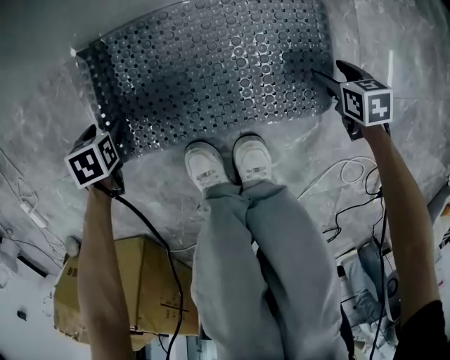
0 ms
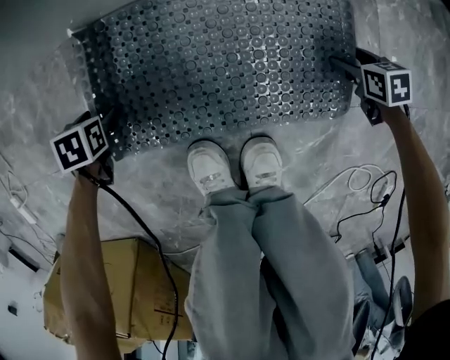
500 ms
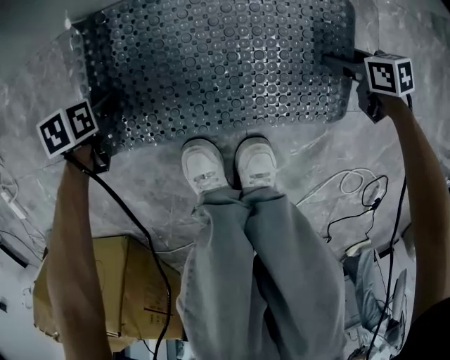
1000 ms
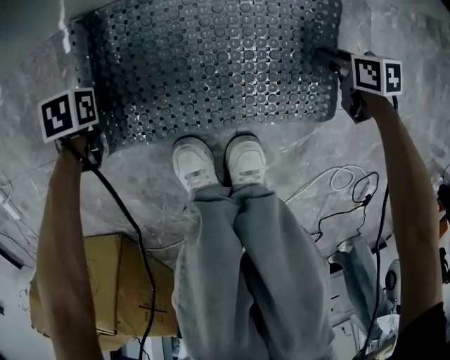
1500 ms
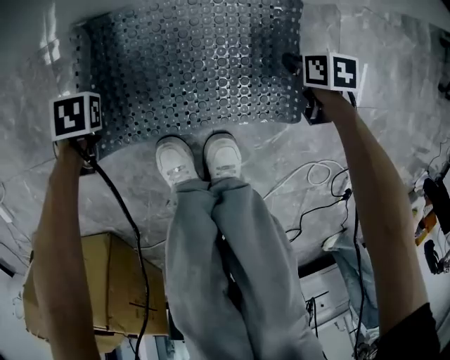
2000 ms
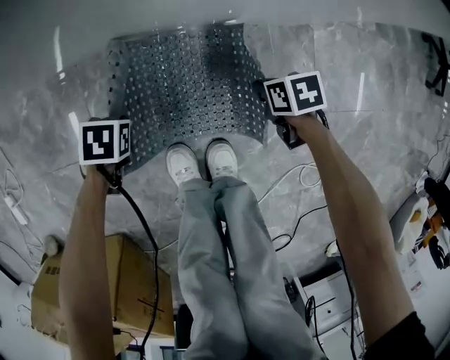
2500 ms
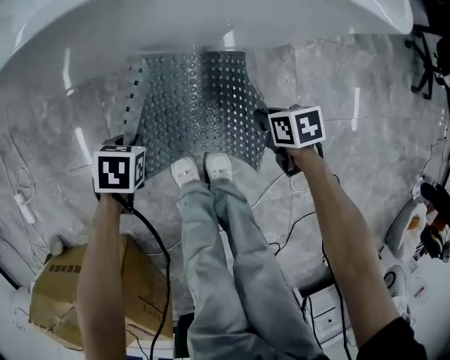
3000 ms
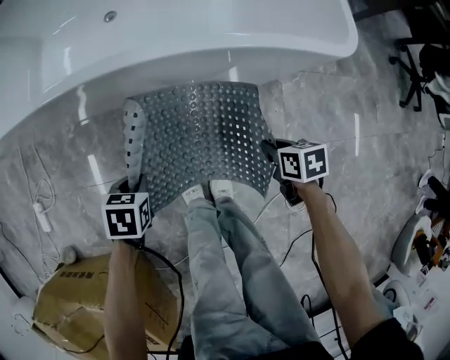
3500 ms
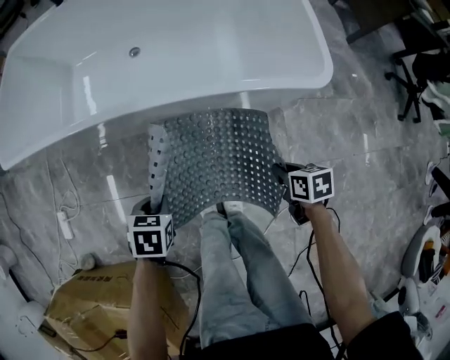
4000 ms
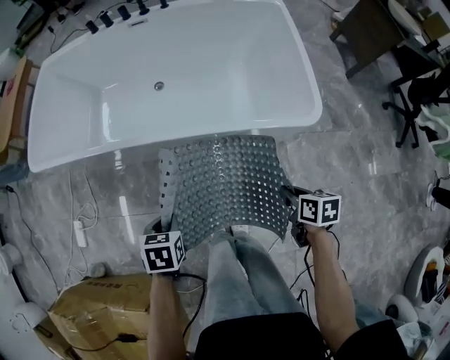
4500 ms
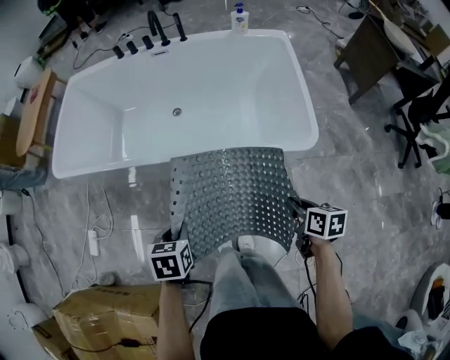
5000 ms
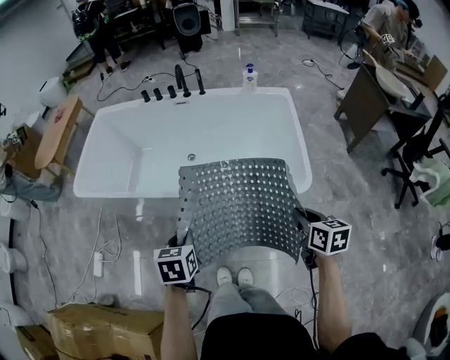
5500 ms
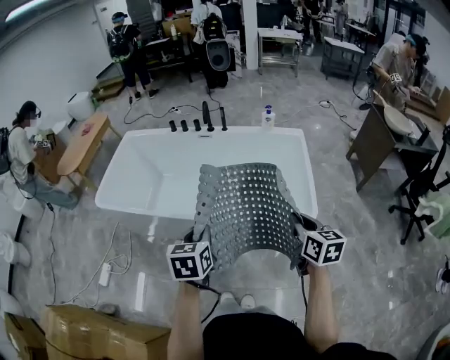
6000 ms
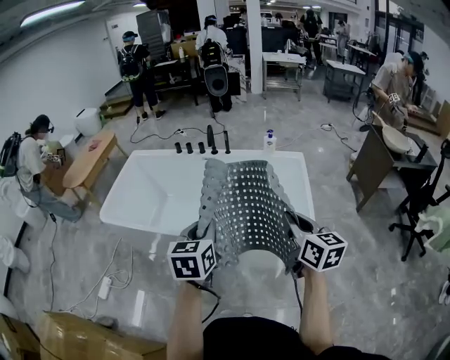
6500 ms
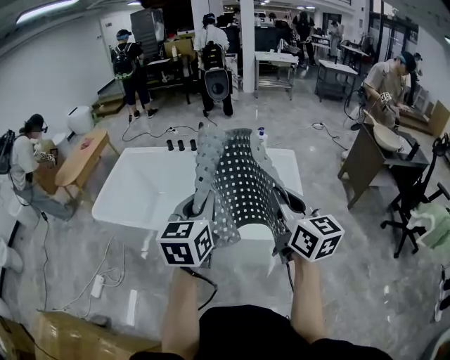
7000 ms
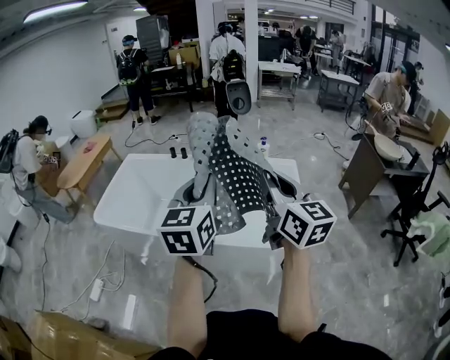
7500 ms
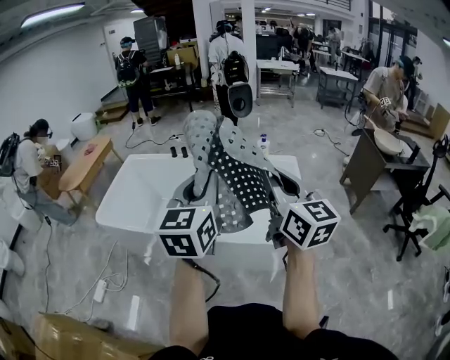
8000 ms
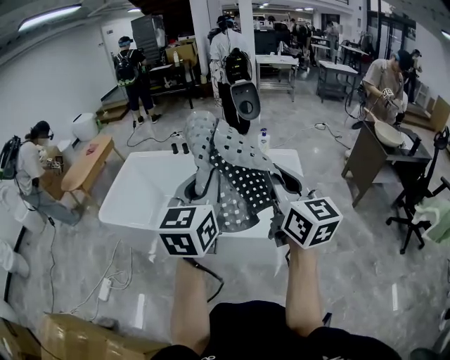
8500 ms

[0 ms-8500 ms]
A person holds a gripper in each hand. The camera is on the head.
0 ms to 2000 ms: The right gripper ends up roughly 5 cm from where it was, and closes up, while the left gripper closes its fingers.
2000 ms to 4000 ms: Both grippers move upward, roughly 50 cm. The left gripper rotates approximately 20 degrees.
4000 ms to 6500 ms: The two grippers go some 50 cm upward. The right gripper angles its fingers upward, by about 50 degrees. Meanwhile the left gripper angles its fingers upward, by approximately 50 degrees.
6500 ms to 8500 ms: The two grippers go approximately 15 cm upward. The right gripper rotates about 20 degrees. The left gripper turns by about 20 degrees.

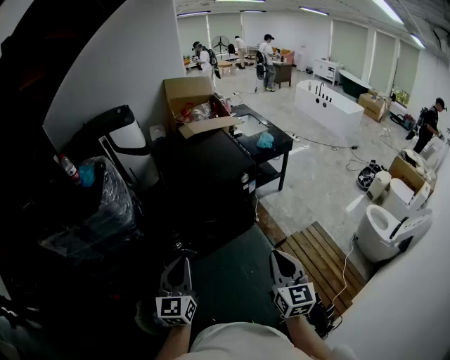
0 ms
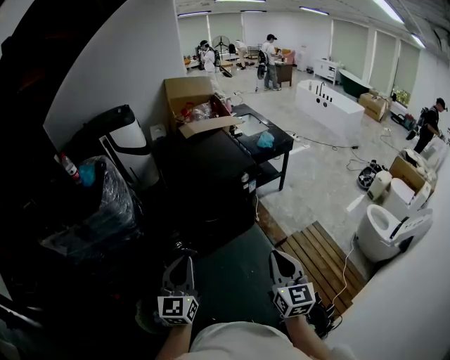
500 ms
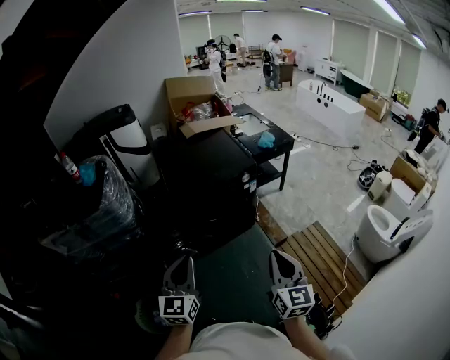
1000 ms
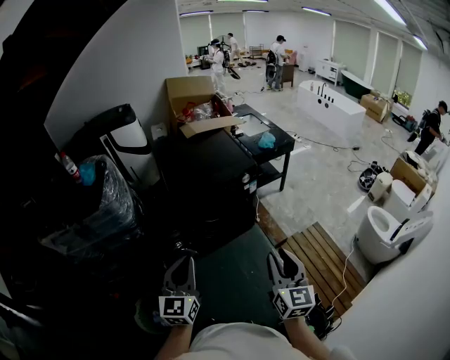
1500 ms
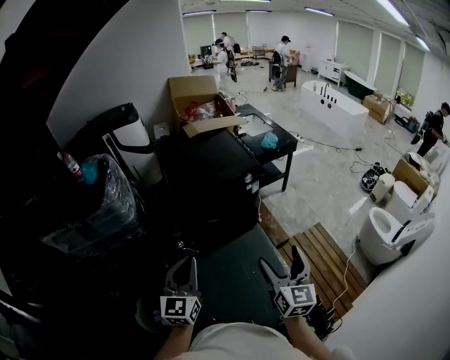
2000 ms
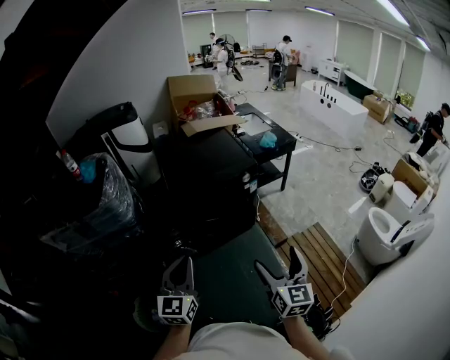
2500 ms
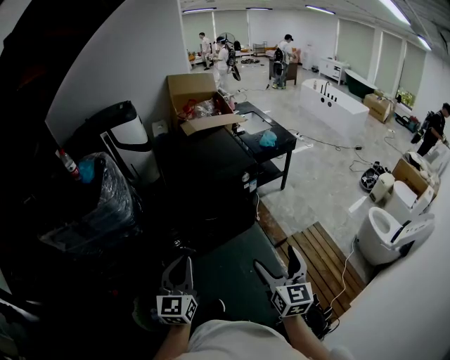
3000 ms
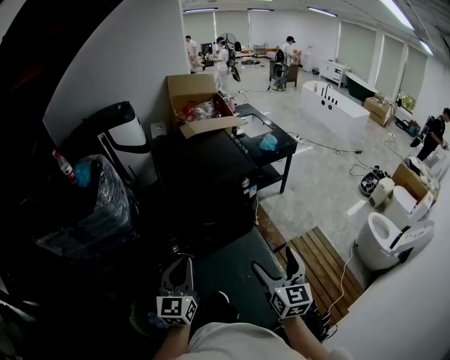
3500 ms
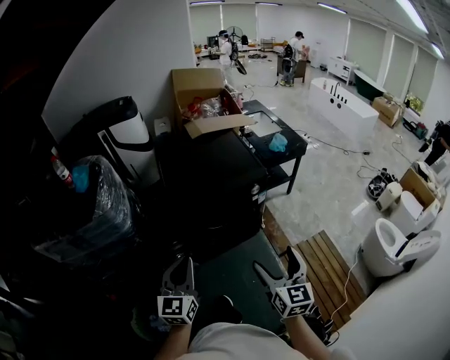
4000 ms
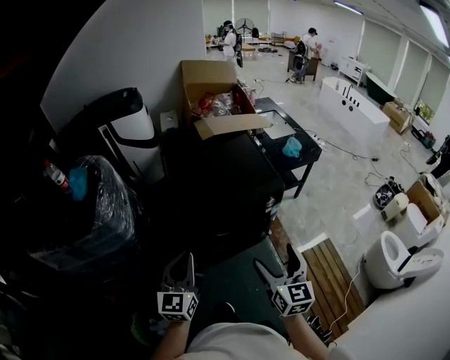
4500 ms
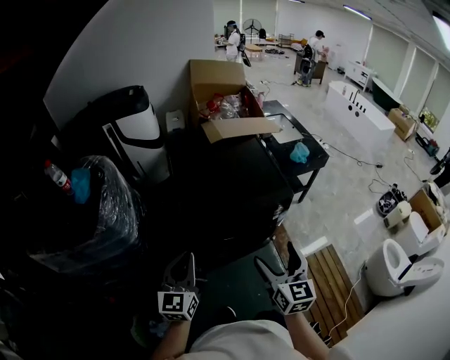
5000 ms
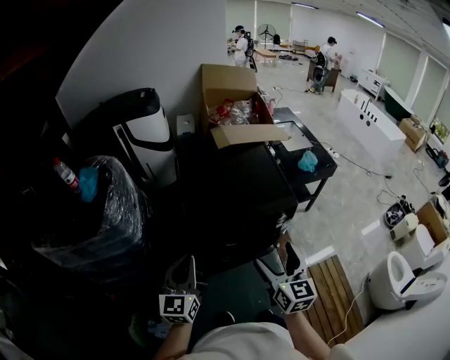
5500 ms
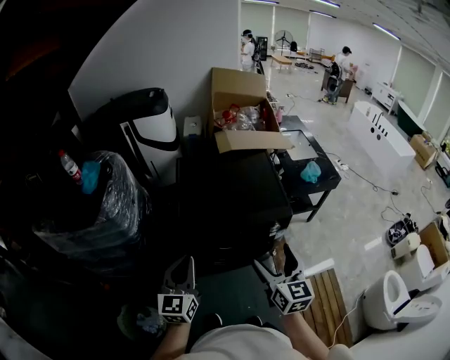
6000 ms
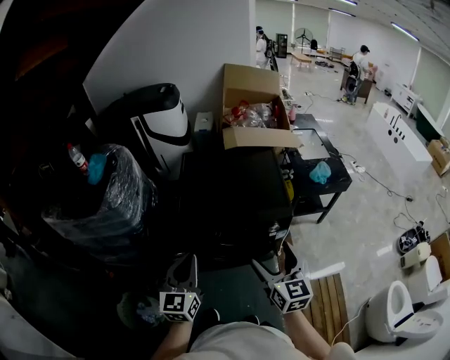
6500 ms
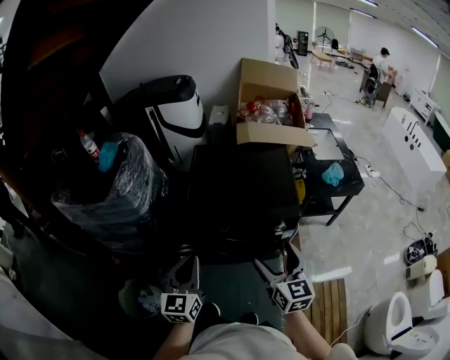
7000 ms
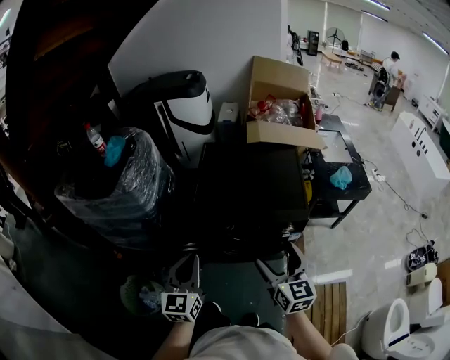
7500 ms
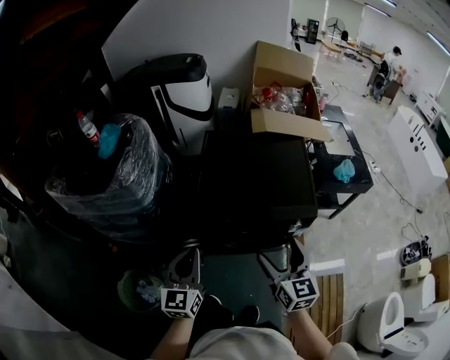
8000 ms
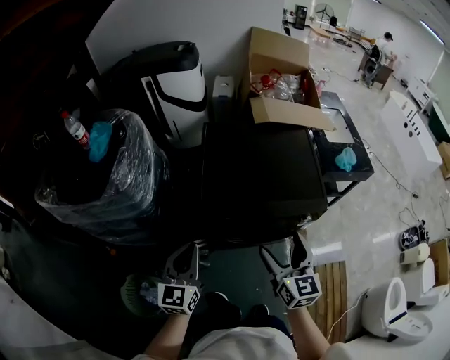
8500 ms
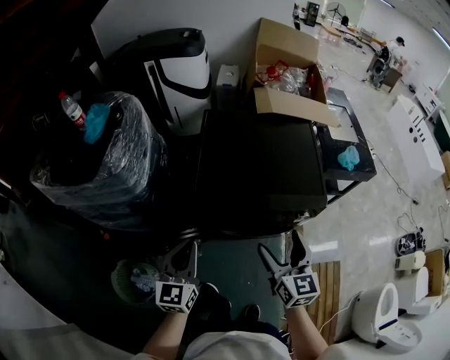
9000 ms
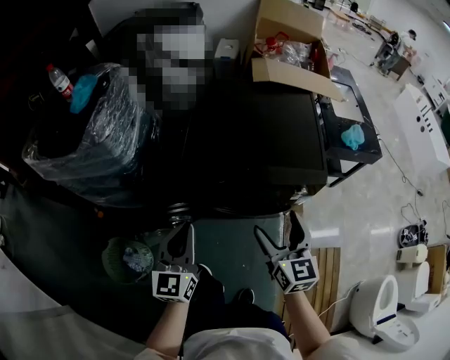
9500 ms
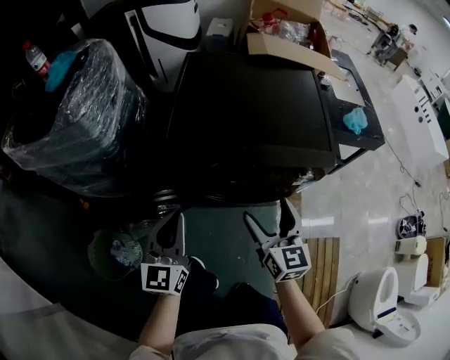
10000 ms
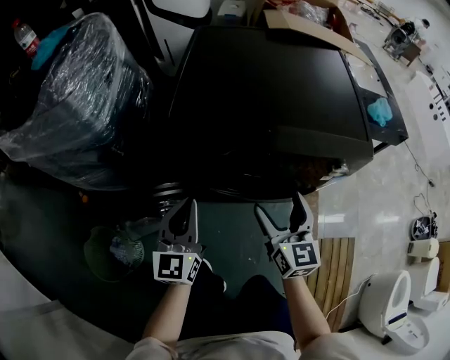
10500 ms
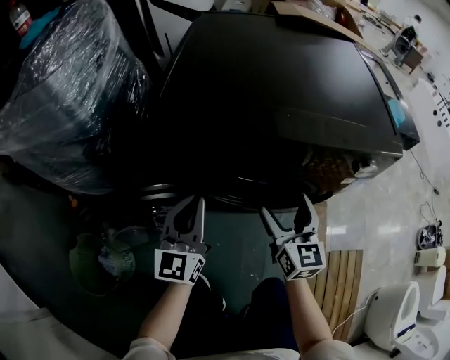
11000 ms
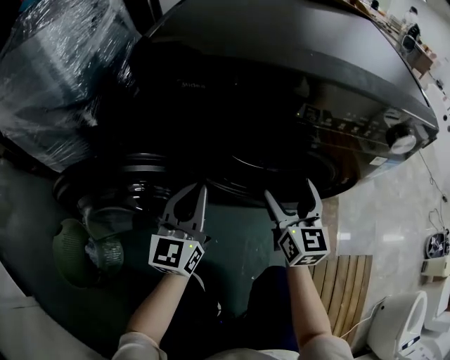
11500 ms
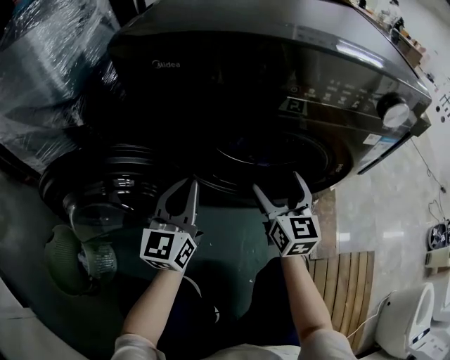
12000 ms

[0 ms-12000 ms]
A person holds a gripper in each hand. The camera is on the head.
0 ms to 2000 ms: The right gripper opens up.
2000 ms to 4000 ms: Both grippers move forward, approximately 15 cm.
4000 ms to 6000 ms: Both grippers move forward, roughly 20 cm.
6000 ms to 8000 ms: The right gripper goes approximately 5 cm forward.
8000 ms to 10000 ms: The grippers both shift downward by approximately 20 cm.
10000 ms to 12000 ms: Both grippers move downward, approximately 35 cm.

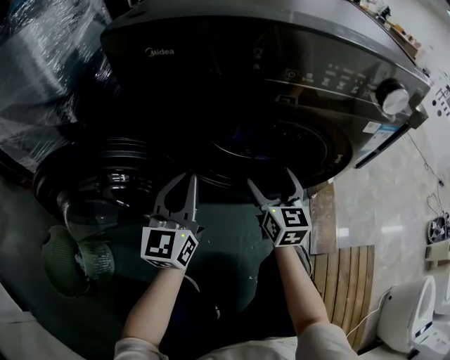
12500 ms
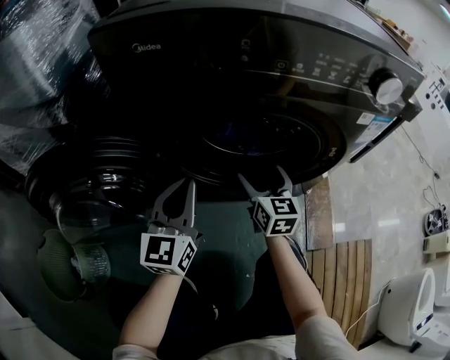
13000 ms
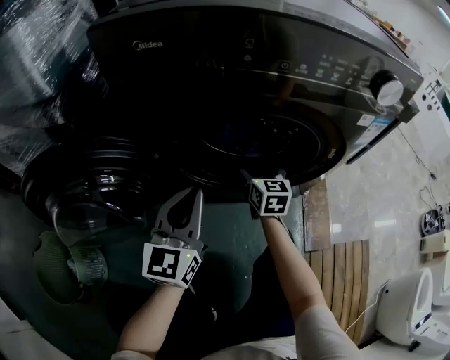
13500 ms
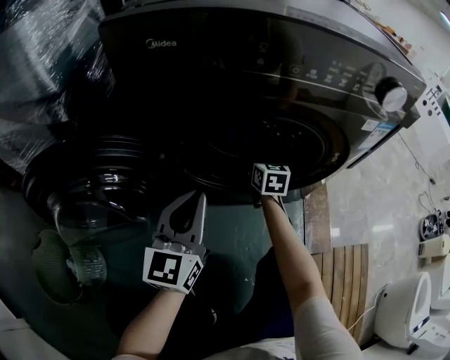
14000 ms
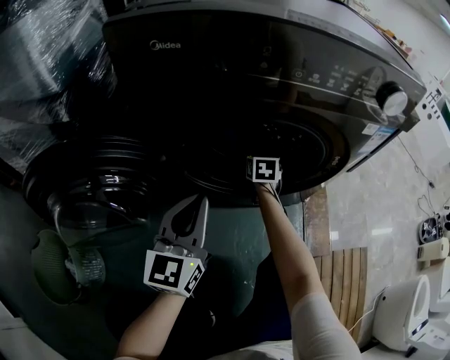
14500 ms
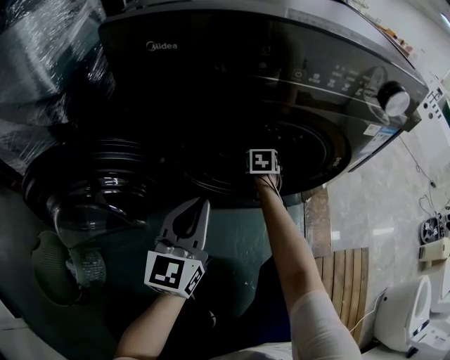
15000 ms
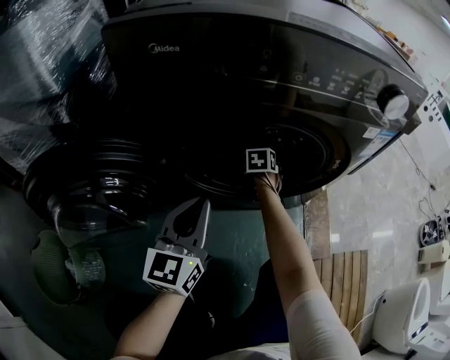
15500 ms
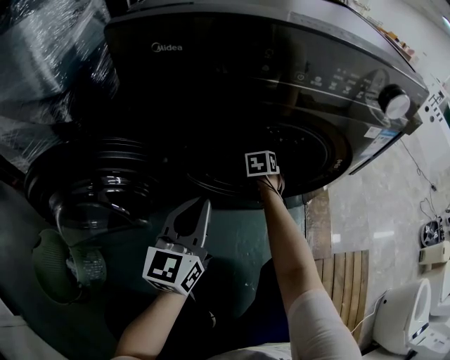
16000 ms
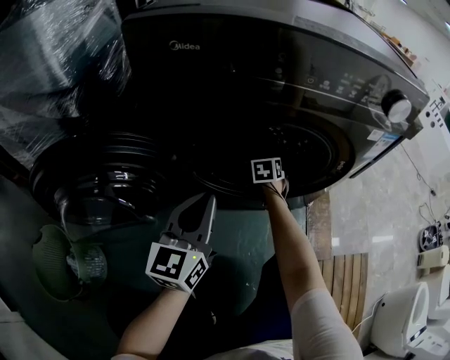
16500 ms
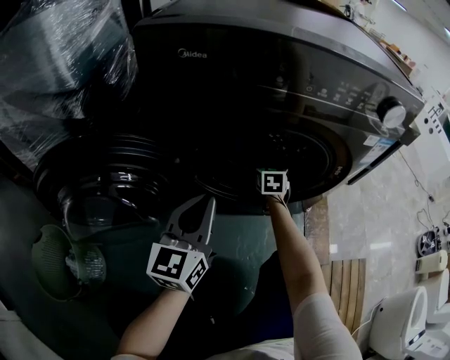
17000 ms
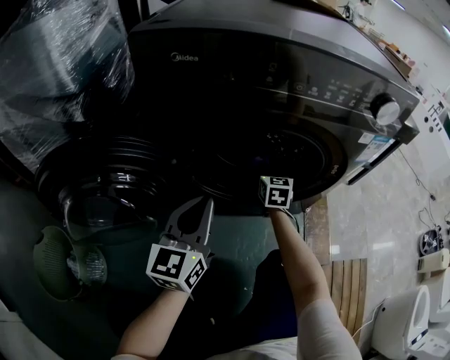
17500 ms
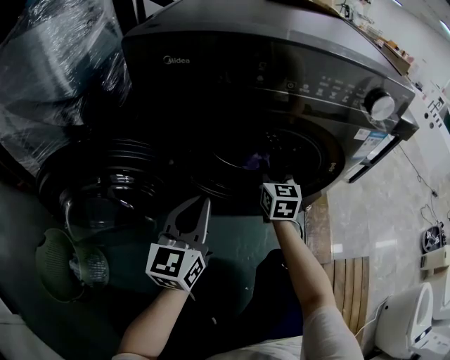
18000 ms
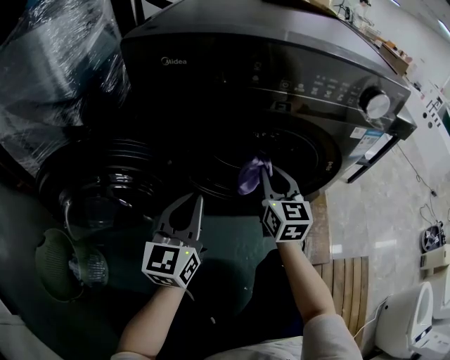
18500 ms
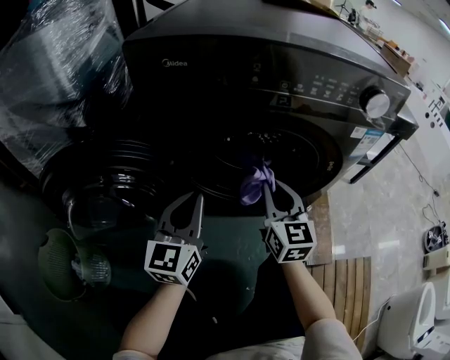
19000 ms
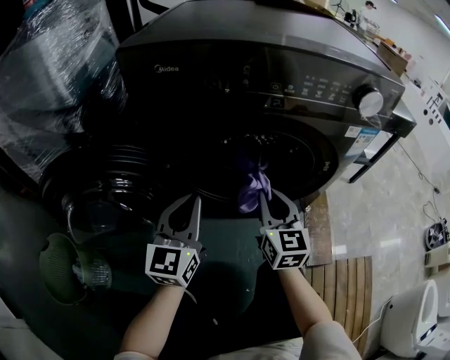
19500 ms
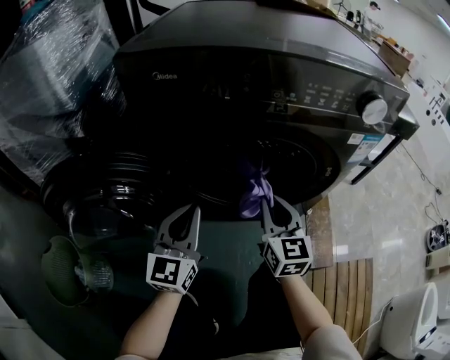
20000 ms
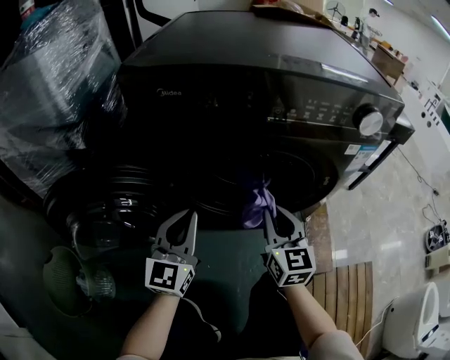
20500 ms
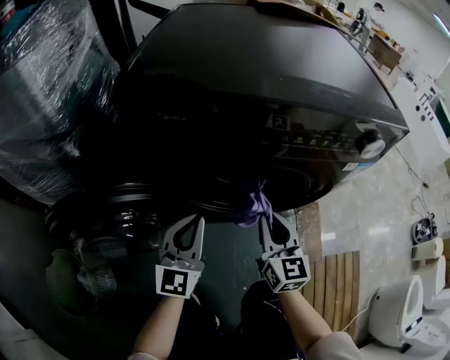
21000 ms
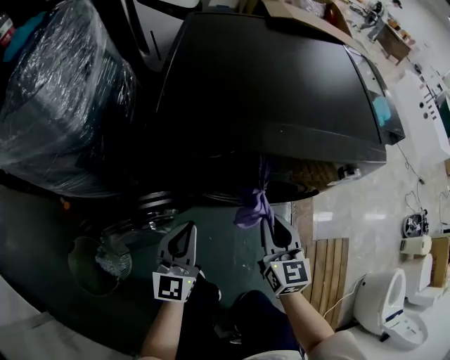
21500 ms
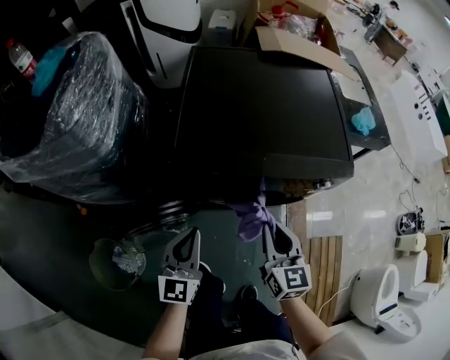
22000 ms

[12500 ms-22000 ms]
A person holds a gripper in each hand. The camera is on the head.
12500 ms to 14500 ms: The left gripper moves some 5 cm. The right gripper heads forward and downward, covering roughly 20 cm, and swivels approximately 30 degrees.
14500 ms to 16500 ms: The right gripper closes up.
16500 ms to 18000 ms: The right gripper travels upward and backward by approximately 15 cm, and tips its fingers upward by roughly 30 degrees.
18000 ms to 20000 ms: The right gripper is displaced backward and upward by some 15 cm.
20000 ms to 22000 ms: The grippers both shift upward by about 30 cm.
